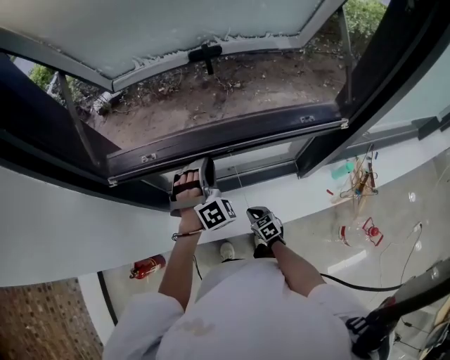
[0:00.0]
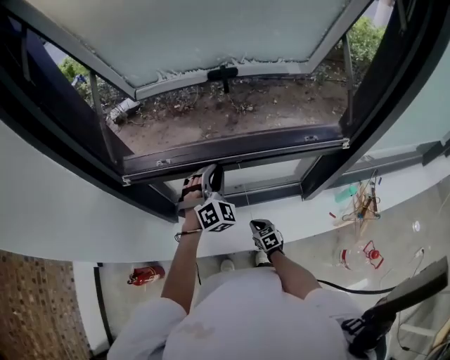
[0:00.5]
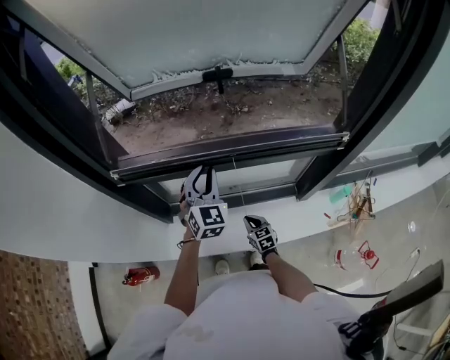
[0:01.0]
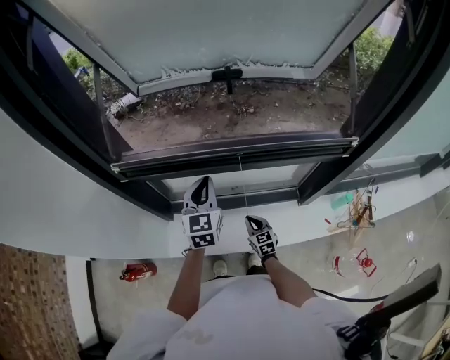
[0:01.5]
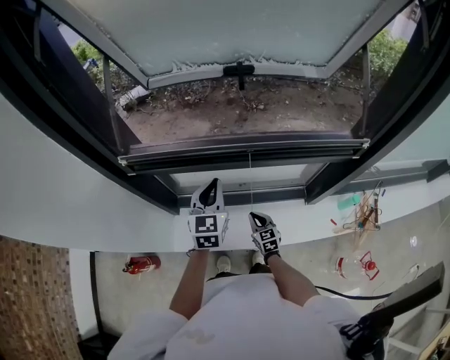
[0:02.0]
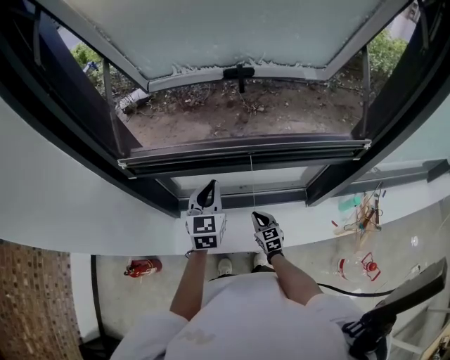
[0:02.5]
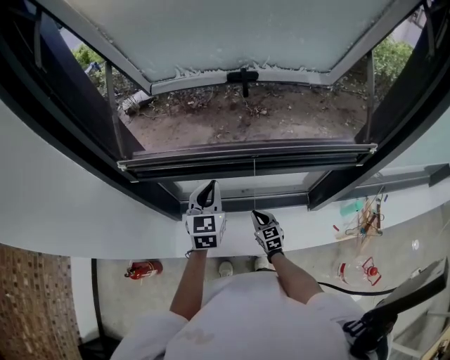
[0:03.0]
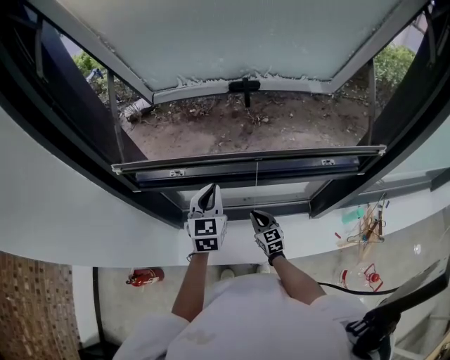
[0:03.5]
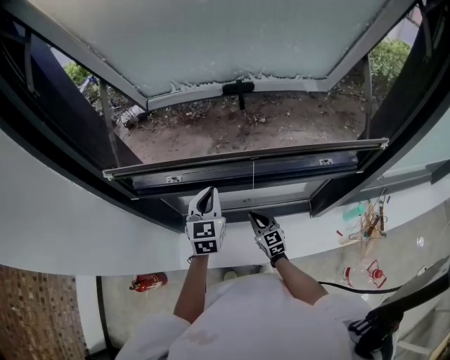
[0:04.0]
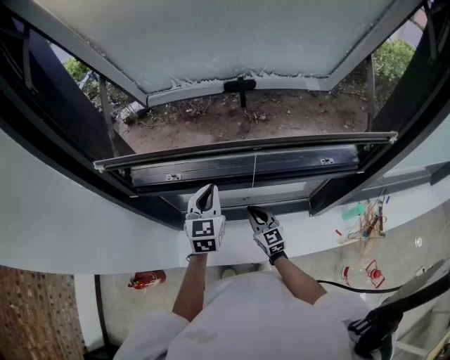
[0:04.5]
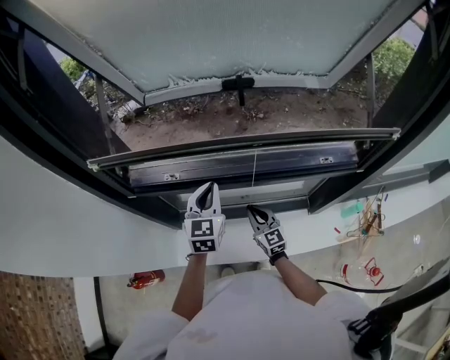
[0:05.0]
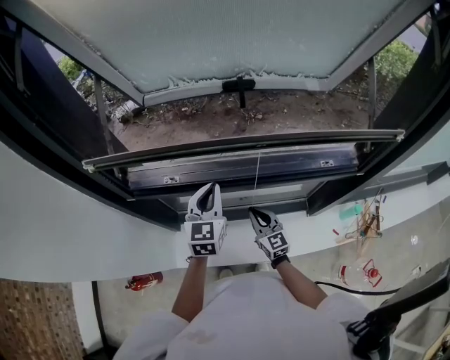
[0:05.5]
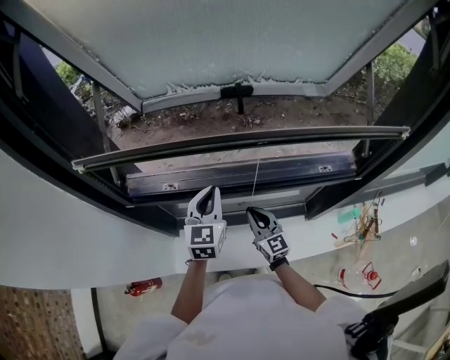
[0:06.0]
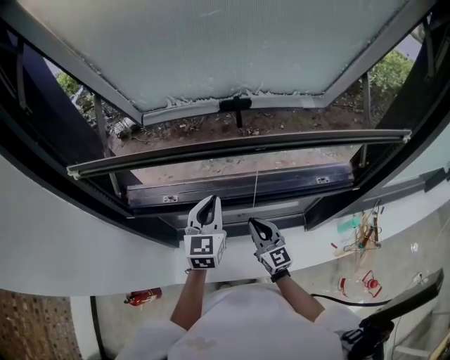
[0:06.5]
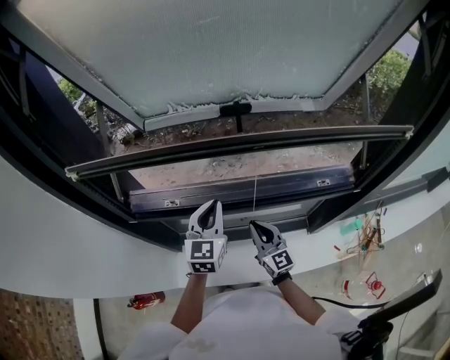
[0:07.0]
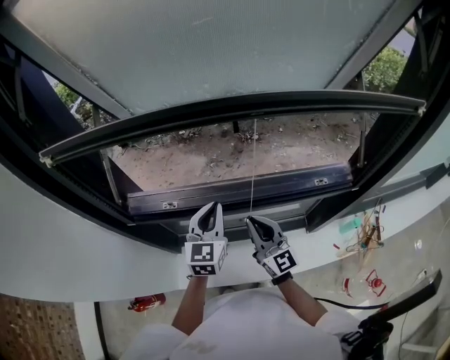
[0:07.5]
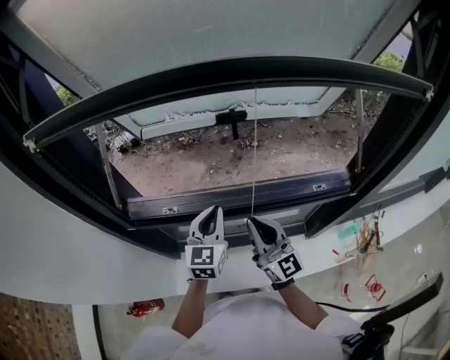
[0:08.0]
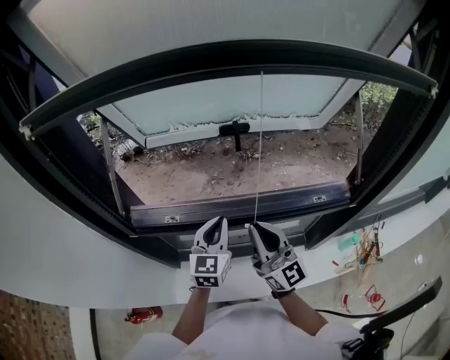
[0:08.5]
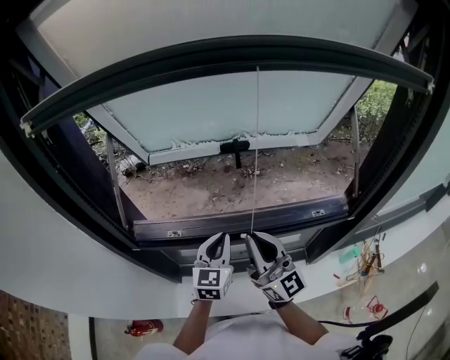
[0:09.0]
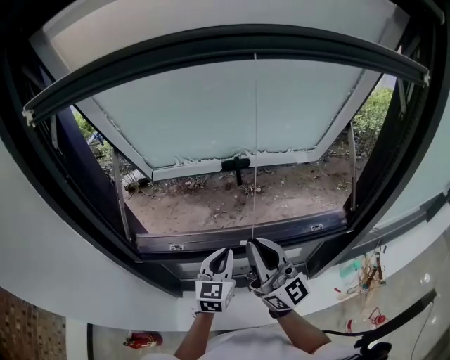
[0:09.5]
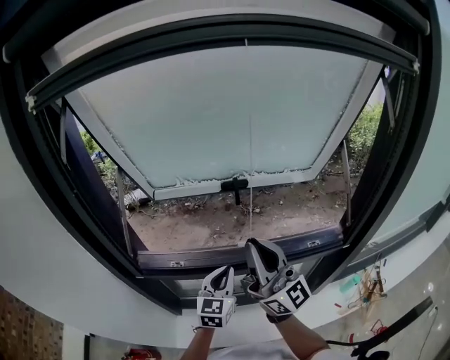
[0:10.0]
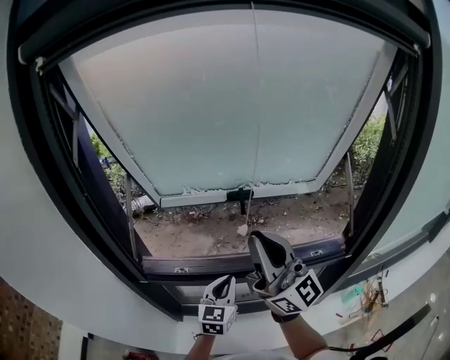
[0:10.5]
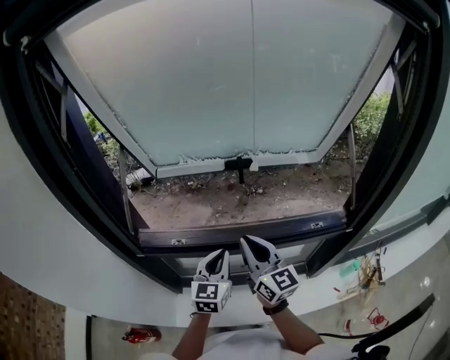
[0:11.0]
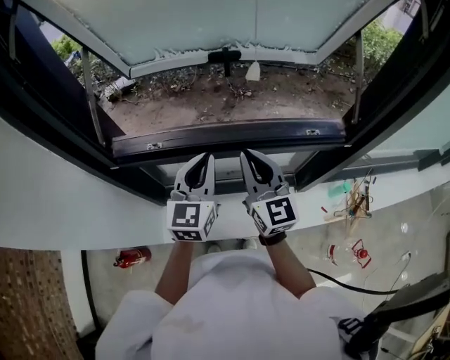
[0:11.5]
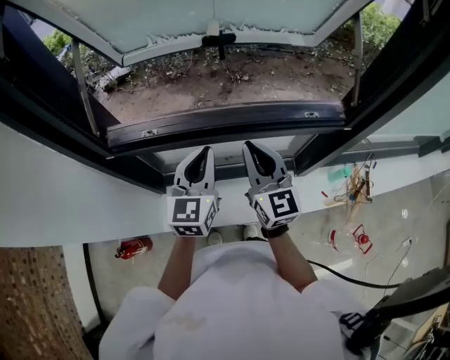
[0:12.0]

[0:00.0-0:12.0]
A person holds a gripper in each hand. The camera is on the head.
0:00.0 to 0:02.0: The left gripper travels to the left by some 5 cm, and twists about 70 degrees counterclockwise, seen from behind, while the right gripper goes about 5 cm upward.
0:02.0 to 0:04.0: The left gripper goes about 5 cm forward; the right gripper is displaced upward and forward by roughly 10 cm.
0:04.0 to 0:06.0: The right gripper goes roughly 10 cm upward.
0:06.0 to 0:08.0: The right gripper is displaced upward by roughly 20 cm, and rotates approximately 20 degrees.
0:08.0 to 0:10.0: The right gripper travels upward by approximately 20 cm, and swivels roughly 20 degrees.
0:10.0 to 0:12.0: The right gripper is displaced downward by roughly 20 cm, and points its fingers about 40 degrees further downward; the left gripper ends up about 5 cm from where it was.

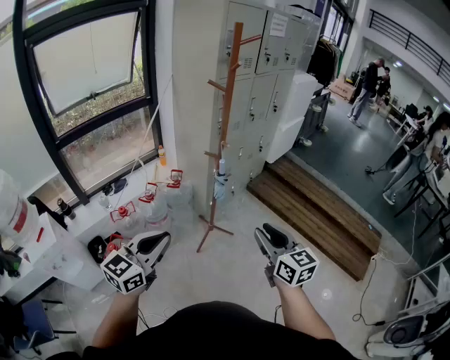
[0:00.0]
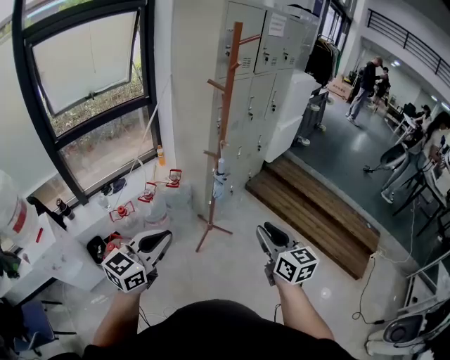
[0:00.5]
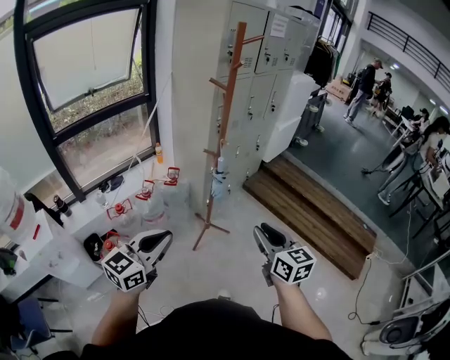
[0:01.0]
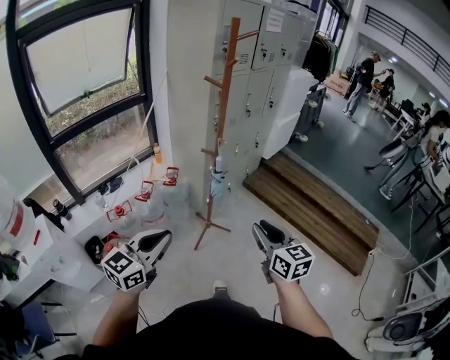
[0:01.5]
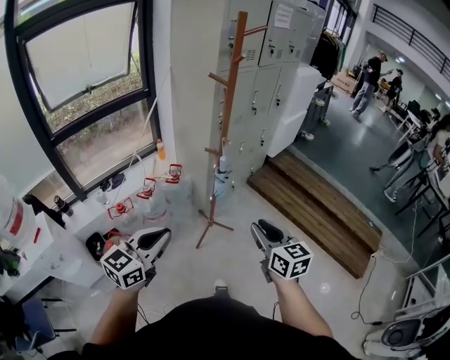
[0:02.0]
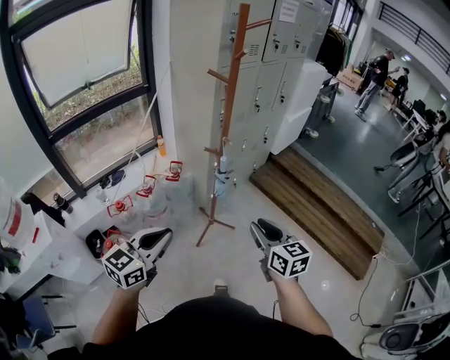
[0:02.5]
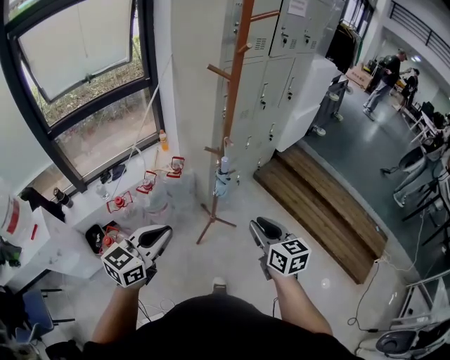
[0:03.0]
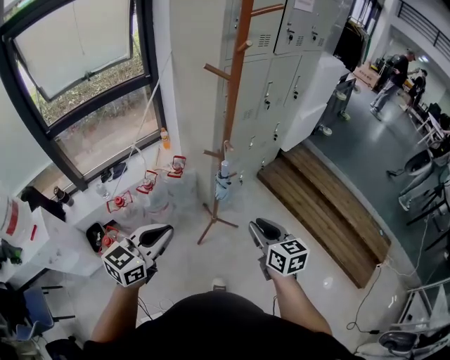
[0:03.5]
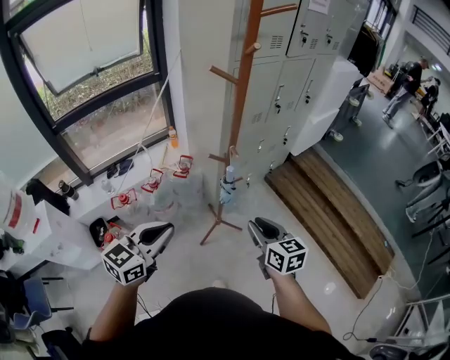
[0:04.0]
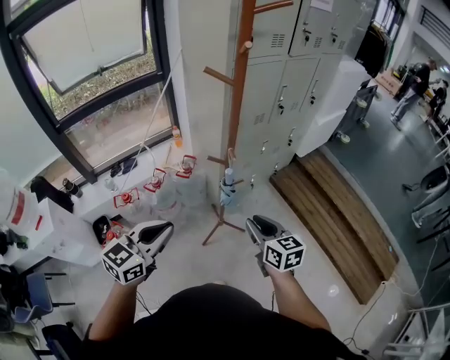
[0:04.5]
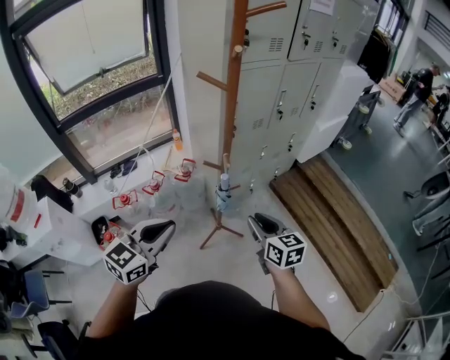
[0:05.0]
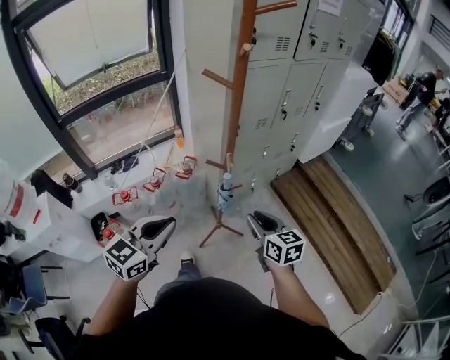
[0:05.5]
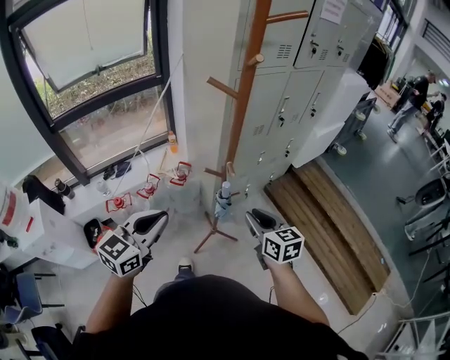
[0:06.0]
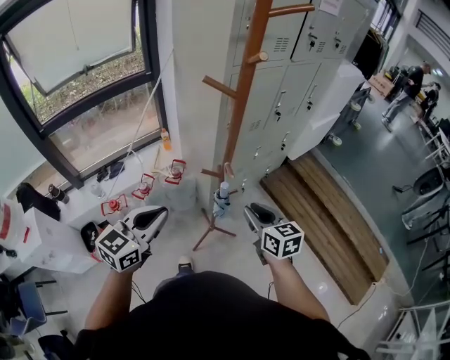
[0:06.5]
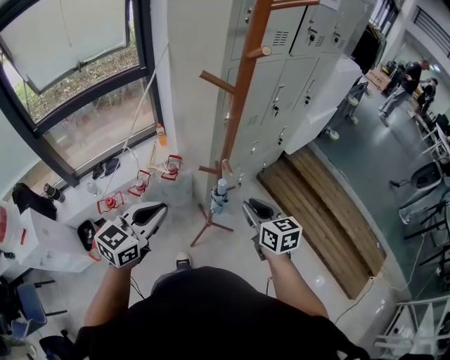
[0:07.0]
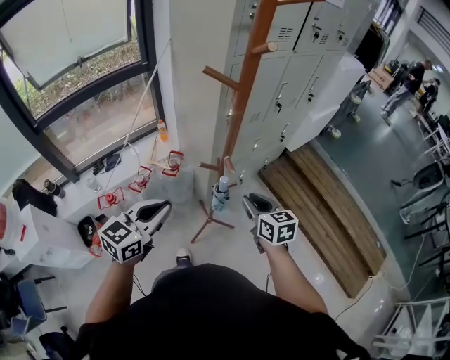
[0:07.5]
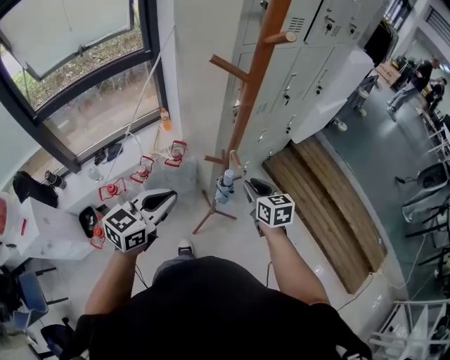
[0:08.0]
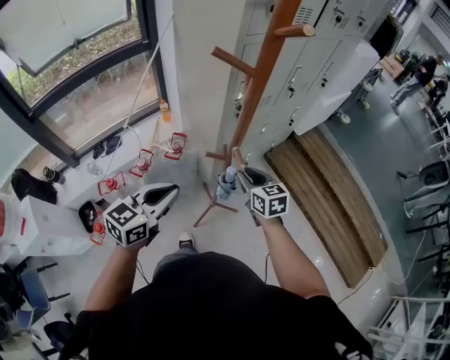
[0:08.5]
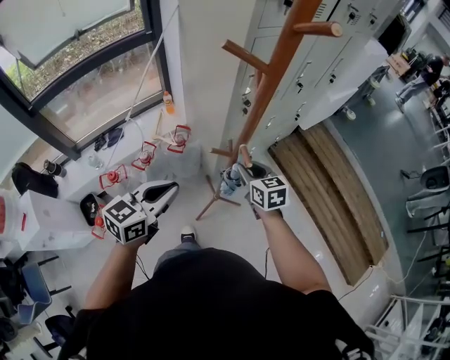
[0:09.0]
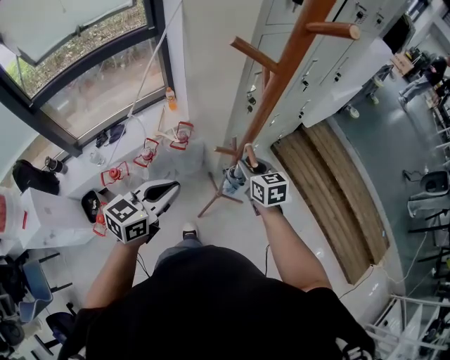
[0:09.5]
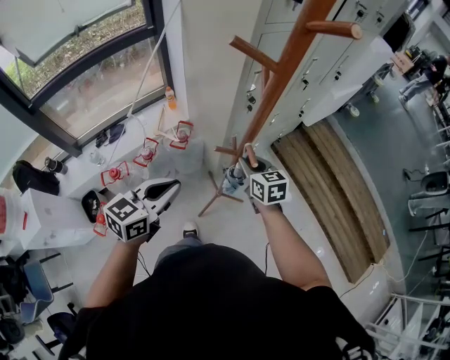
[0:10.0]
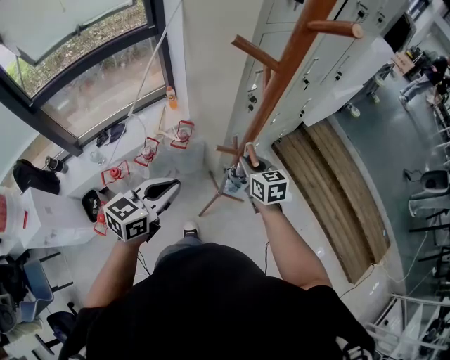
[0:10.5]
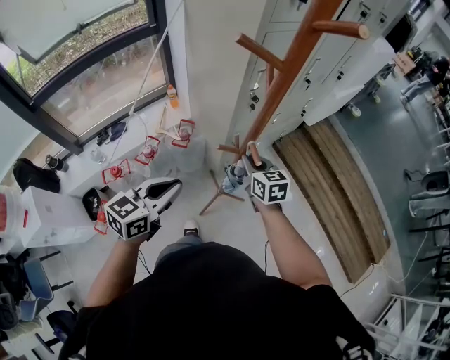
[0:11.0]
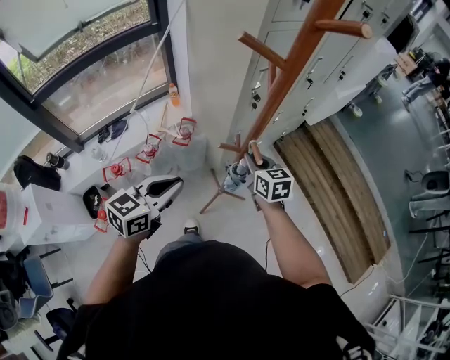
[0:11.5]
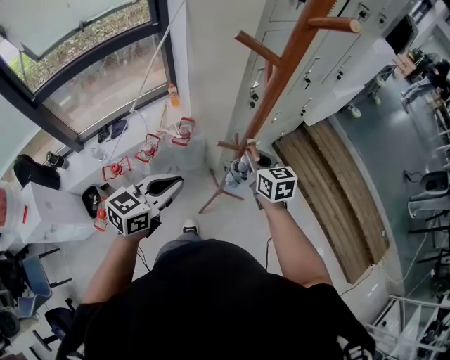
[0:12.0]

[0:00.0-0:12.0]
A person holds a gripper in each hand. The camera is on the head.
0:00.0 to 0:02.0: Both grippers travel together forward, roughly 5 cm.
0:02.0 to 0:04.0: The grippers both shift forward by approximately 20 cm.
0:04.0 to 0:06.0: Both grippers move forward, some 10 cm.
0:06.0 to 0:08.0: Both grippers travel together forward and downward, approximately 15 cm.
0:08.0 to 0:10.0: The left gripper moves roughly 5 cm. Meanwhile the right gripper heads forward and to the left, covering about 10 cm.
0:10.0 to 0:12.0: The grippers stay close to where they were, moving slightly.

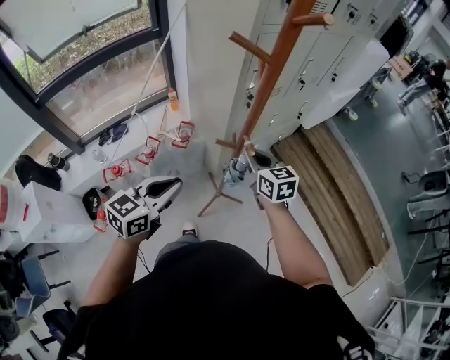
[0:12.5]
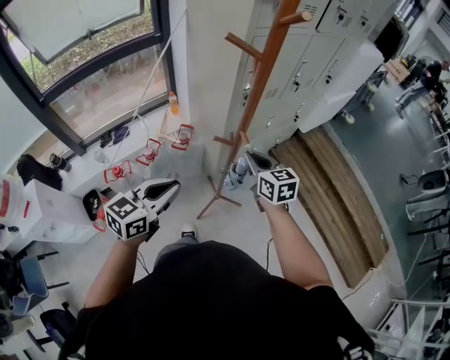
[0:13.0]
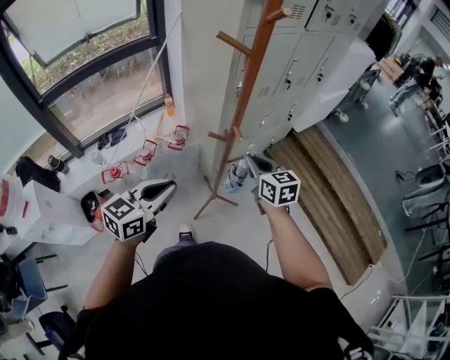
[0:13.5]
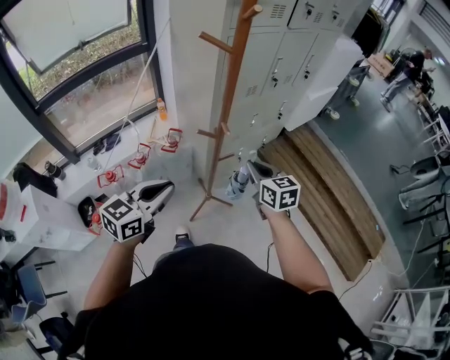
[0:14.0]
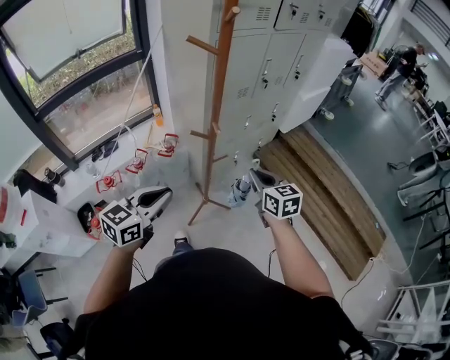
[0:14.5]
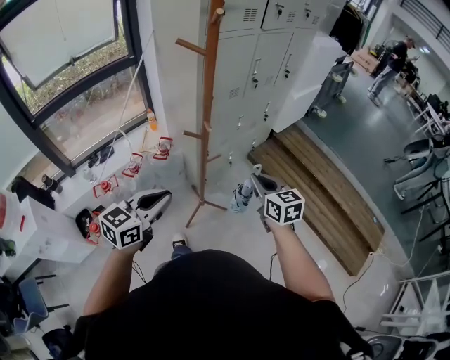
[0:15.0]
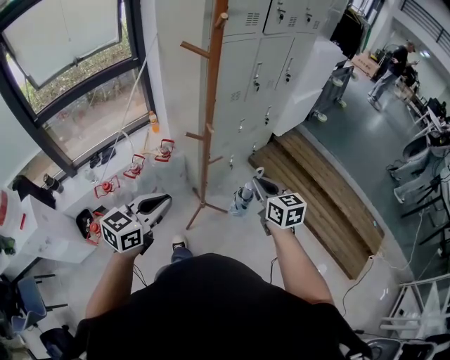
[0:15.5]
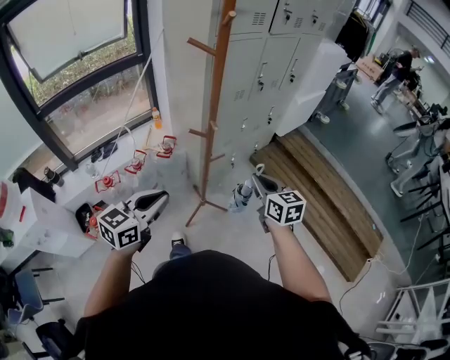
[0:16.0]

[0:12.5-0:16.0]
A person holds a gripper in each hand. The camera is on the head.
0:12.5 to 0:14.5: The two grippers go approximately 20 cm backward and to the right.
0:14.5 to 0:16.0: The right gripper changes place by roughly 5 cm.
